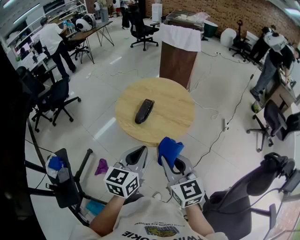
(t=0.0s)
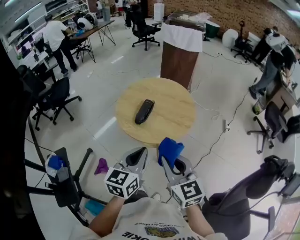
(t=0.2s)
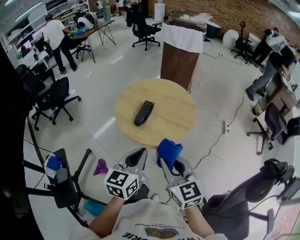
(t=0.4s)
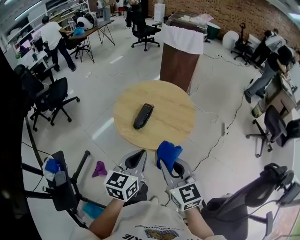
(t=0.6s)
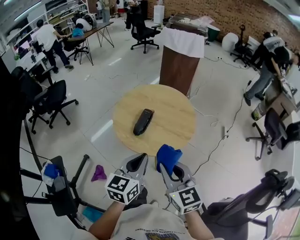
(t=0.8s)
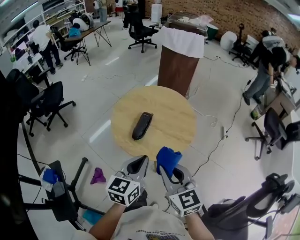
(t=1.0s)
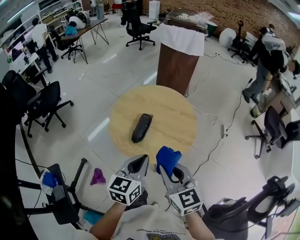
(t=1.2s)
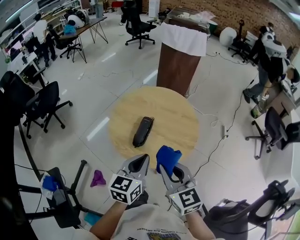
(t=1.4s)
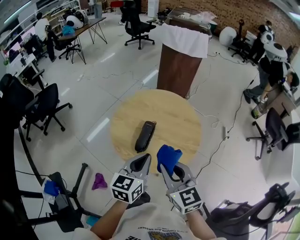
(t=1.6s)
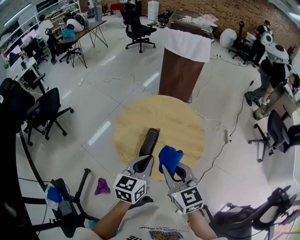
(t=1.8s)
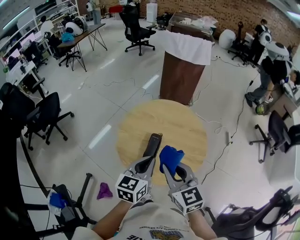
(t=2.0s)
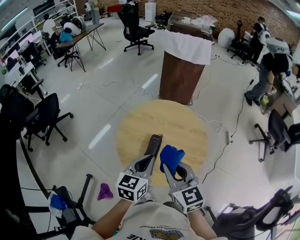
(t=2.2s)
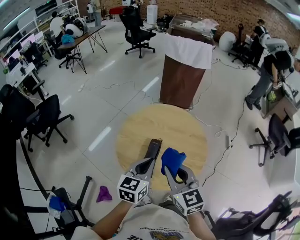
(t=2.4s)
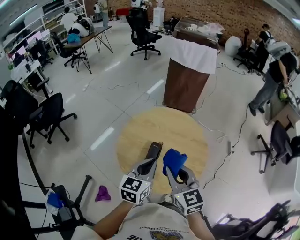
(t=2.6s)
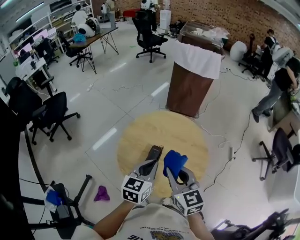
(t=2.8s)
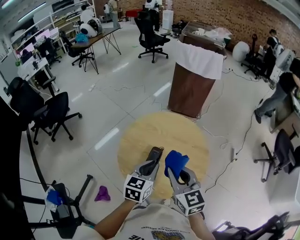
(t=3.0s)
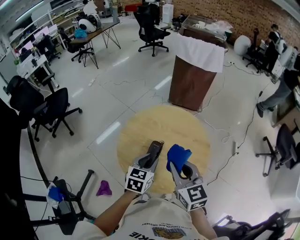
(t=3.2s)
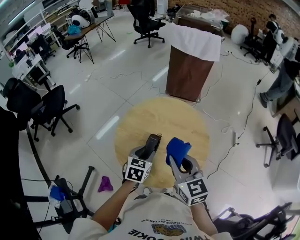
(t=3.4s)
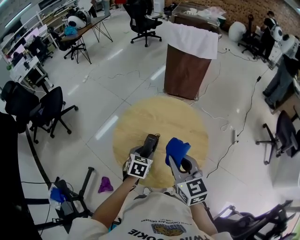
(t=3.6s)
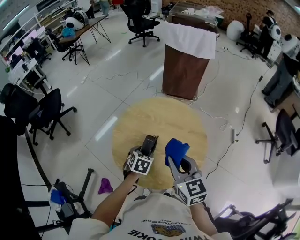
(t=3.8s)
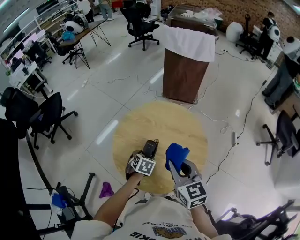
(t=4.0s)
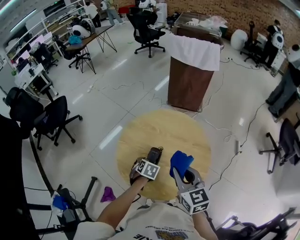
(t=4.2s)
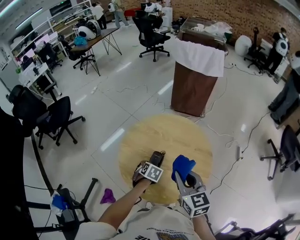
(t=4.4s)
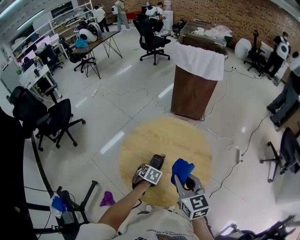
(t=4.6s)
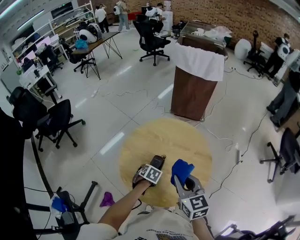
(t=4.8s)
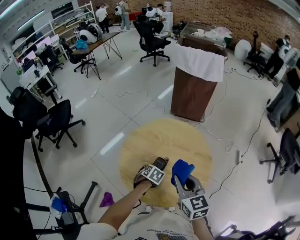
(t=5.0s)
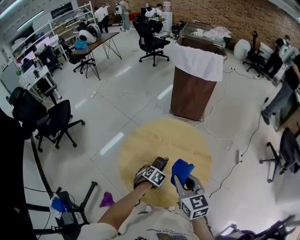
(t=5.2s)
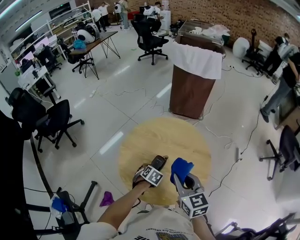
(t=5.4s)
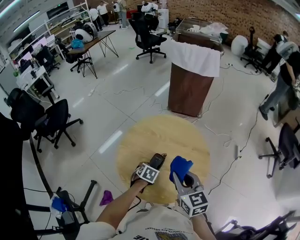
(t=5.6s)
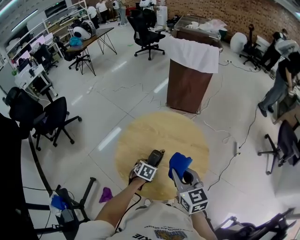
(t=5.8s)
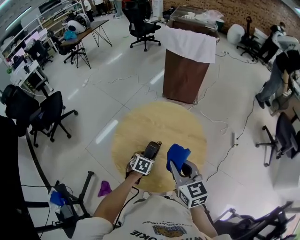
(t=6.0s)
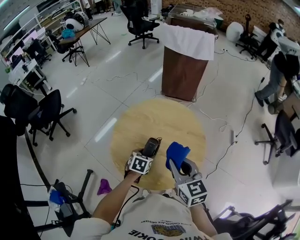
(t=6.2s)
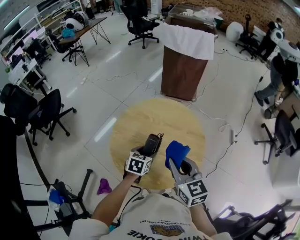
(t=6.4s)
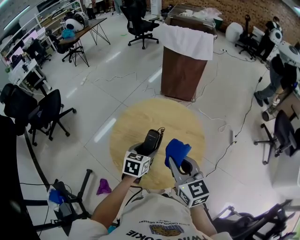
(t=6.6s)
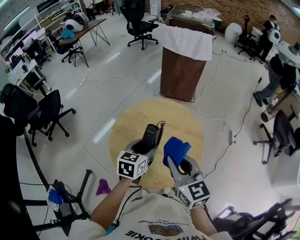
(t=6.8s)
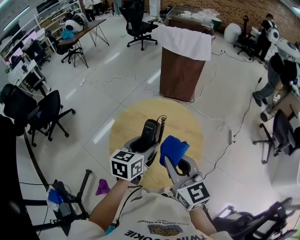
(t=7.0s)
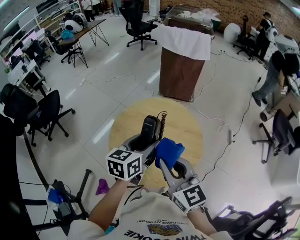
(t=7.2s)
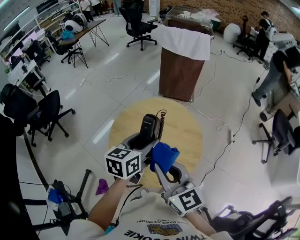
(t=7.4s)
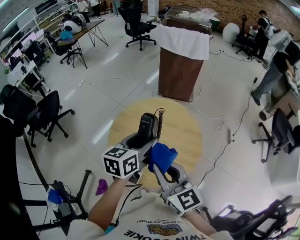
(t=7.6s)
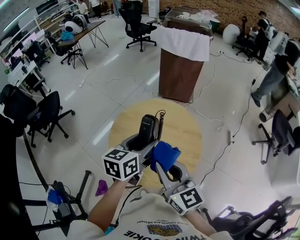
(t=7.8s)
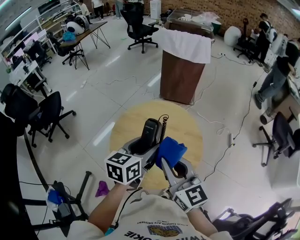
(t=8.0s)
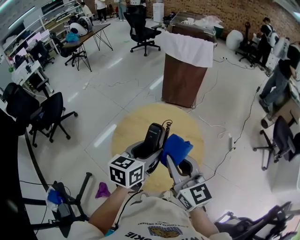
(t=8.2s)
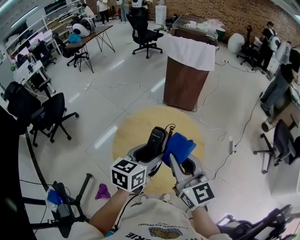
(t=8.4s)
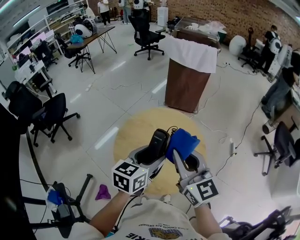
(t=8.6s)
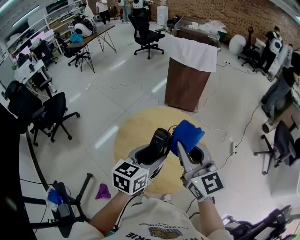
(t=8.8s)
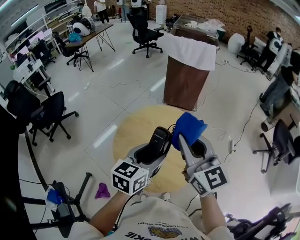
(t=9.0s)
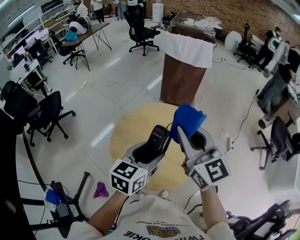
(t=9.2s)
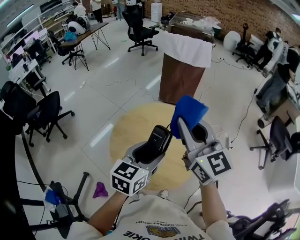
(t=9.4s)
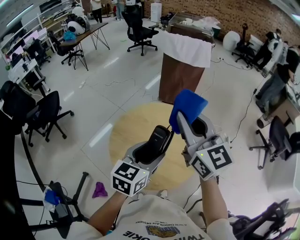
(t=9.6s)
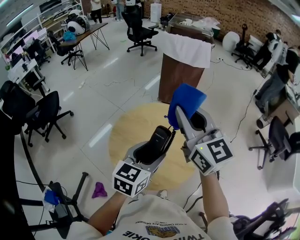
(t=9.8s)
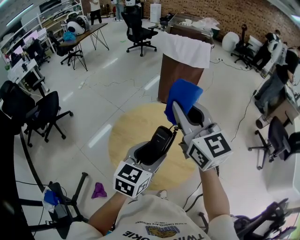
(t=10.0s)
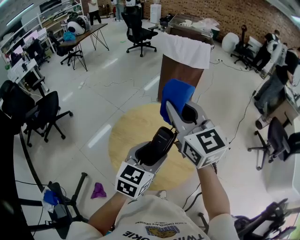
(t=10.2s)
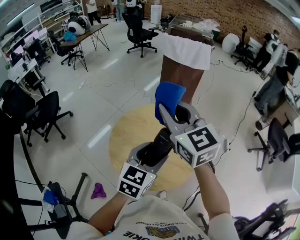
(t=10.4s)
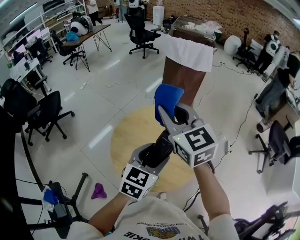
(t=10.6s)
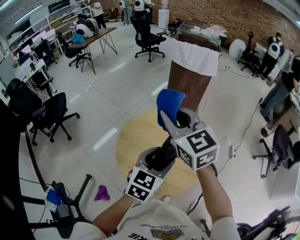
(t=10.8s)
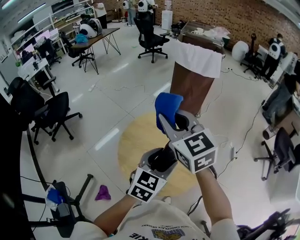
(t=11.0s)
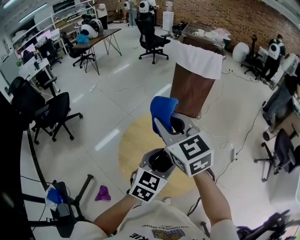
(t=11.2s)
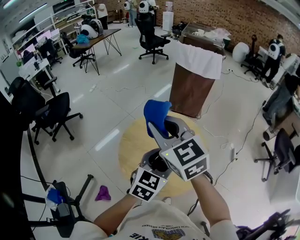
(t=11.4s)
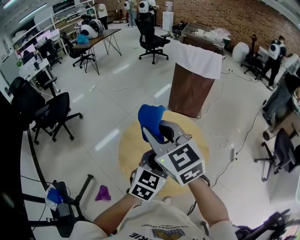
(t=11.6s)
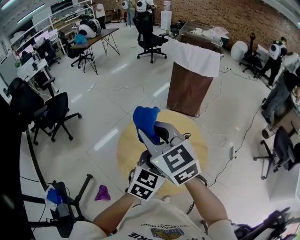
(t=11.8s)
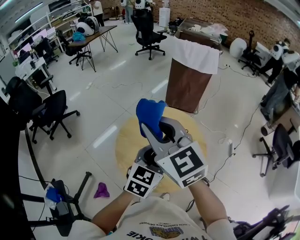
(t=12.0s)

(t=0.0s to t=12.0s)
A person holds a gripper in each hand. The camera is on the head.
t=0.0s - t=1.6s: The two grippers go about 15 cm forward.
t=1.6s - t=3.0s: The two grippers go approximately 10 cm forward.
t=3.0s - t=4.4s: The left gripper moves downward, some 20 cm, tilts its fingers approximately 40 degrees downward, and opens. Meanwhile the right gripper shifts by some 5 cm.
t=4.4s - t=6.0s: The grippers make only small movements.
t=6.0s - t=7.6s: The left gripper heads upward, covering about 25 cm, and angles its fingers upward, by about 40 degrees. Meanwhile the right gripper goes some 10 cm upward and backward.
t=7.6s - t=9.0s: The right gripper travels upward and forward by roughly 15 cm.
t=9.0s - t=10.4s: The right gripper is displaced forward and to the left by approximately 10 cm.
t=10.4s - t=12.0s: The right gripper goes about 10 cm to the left and backward.

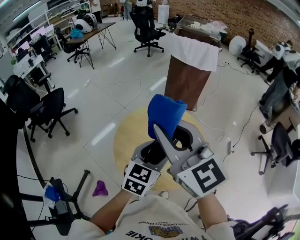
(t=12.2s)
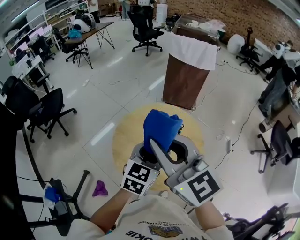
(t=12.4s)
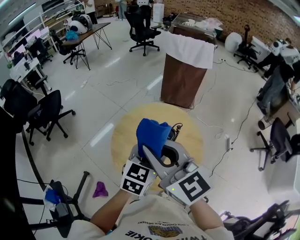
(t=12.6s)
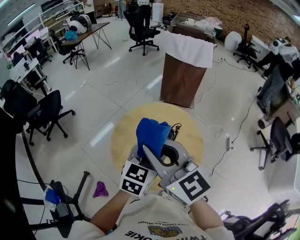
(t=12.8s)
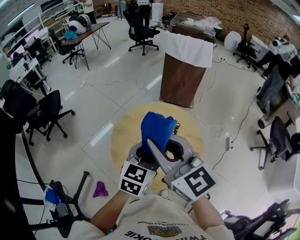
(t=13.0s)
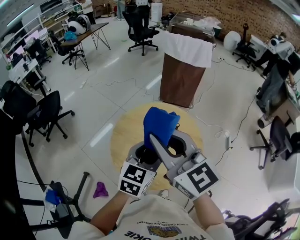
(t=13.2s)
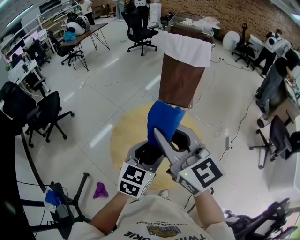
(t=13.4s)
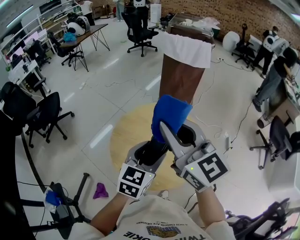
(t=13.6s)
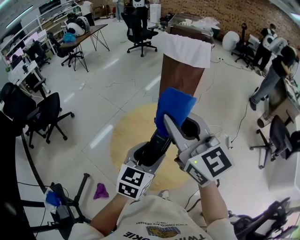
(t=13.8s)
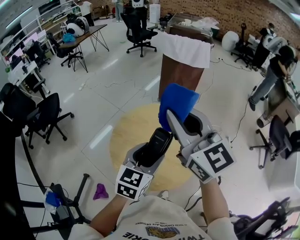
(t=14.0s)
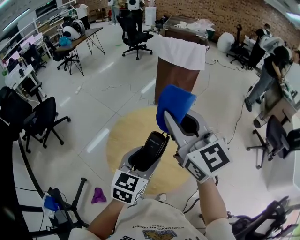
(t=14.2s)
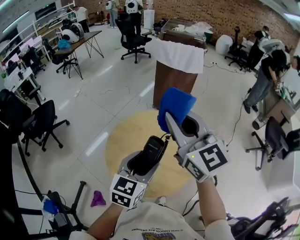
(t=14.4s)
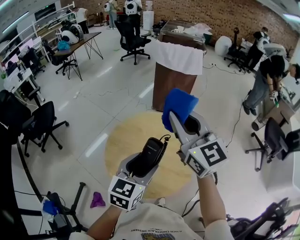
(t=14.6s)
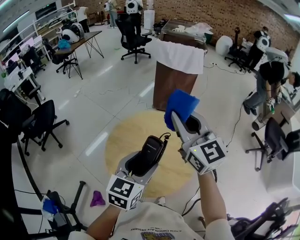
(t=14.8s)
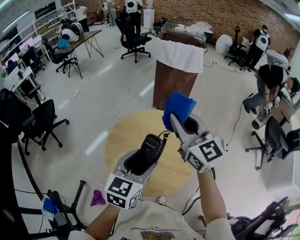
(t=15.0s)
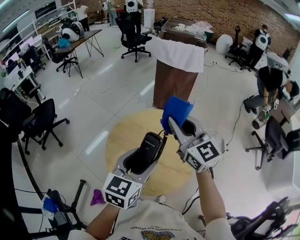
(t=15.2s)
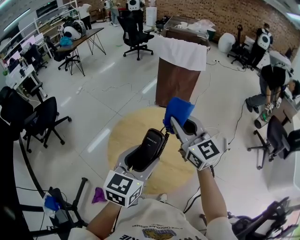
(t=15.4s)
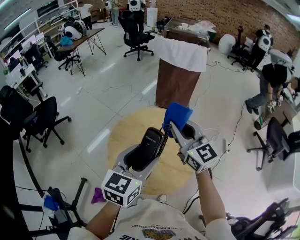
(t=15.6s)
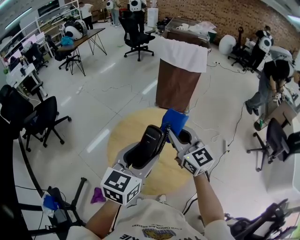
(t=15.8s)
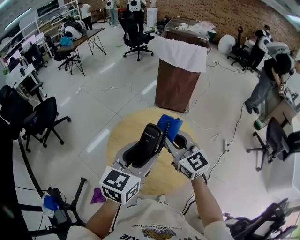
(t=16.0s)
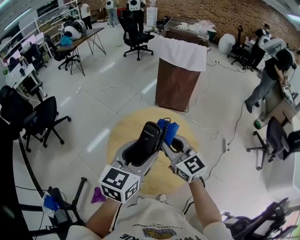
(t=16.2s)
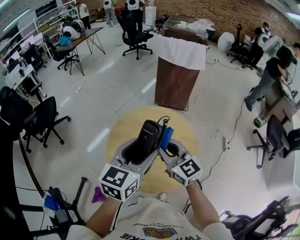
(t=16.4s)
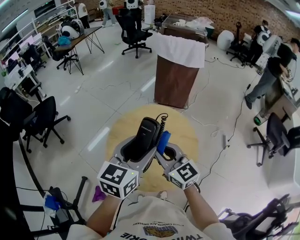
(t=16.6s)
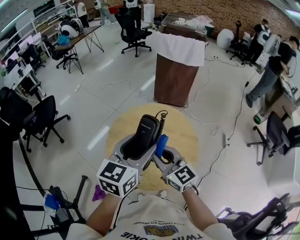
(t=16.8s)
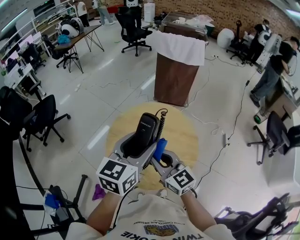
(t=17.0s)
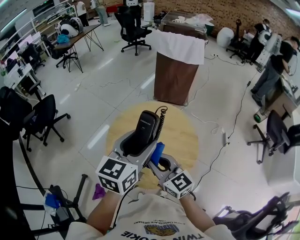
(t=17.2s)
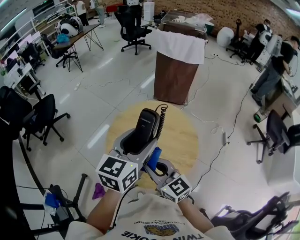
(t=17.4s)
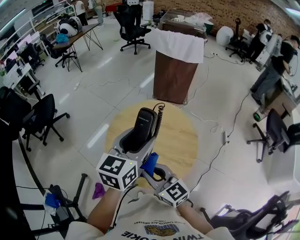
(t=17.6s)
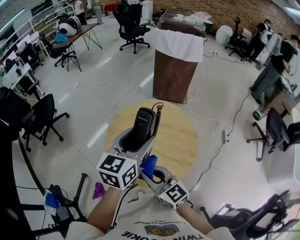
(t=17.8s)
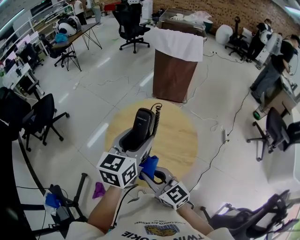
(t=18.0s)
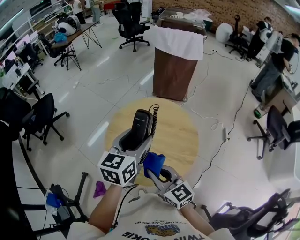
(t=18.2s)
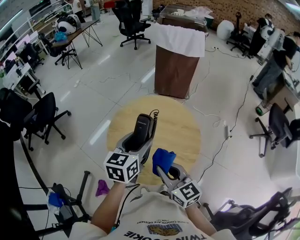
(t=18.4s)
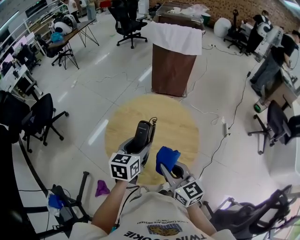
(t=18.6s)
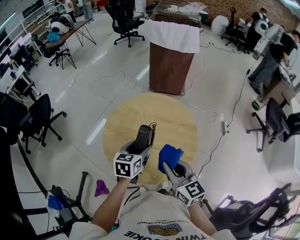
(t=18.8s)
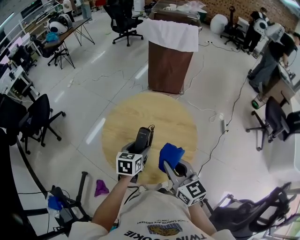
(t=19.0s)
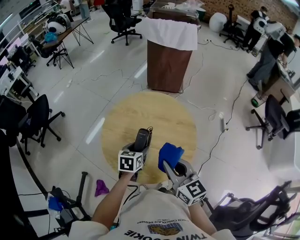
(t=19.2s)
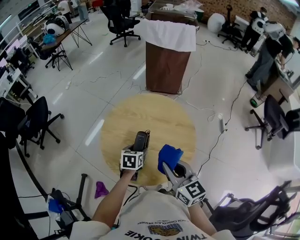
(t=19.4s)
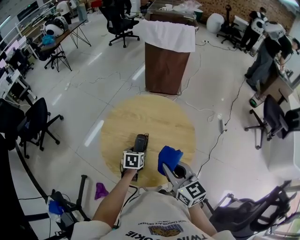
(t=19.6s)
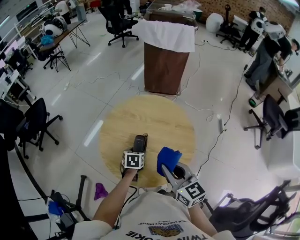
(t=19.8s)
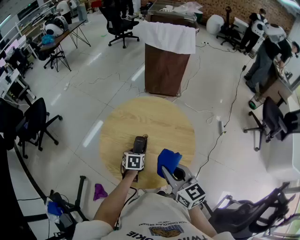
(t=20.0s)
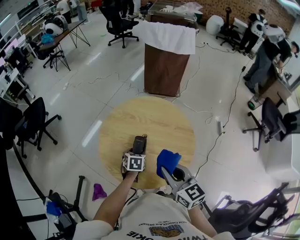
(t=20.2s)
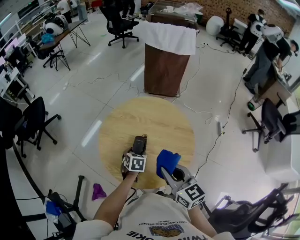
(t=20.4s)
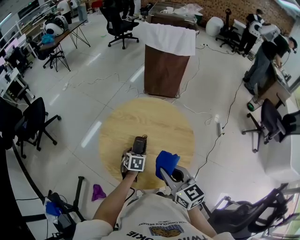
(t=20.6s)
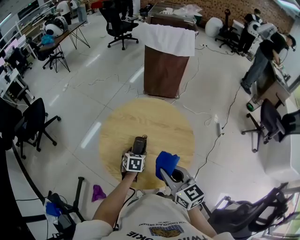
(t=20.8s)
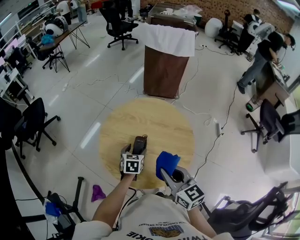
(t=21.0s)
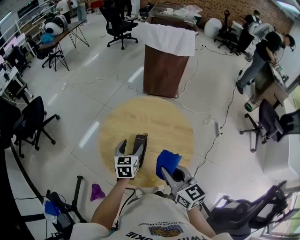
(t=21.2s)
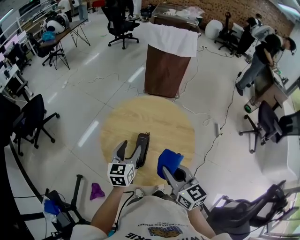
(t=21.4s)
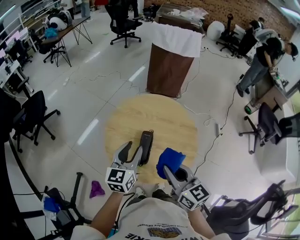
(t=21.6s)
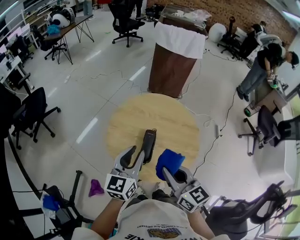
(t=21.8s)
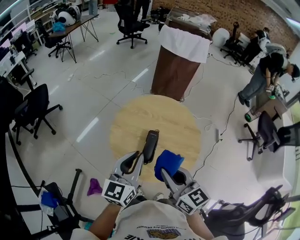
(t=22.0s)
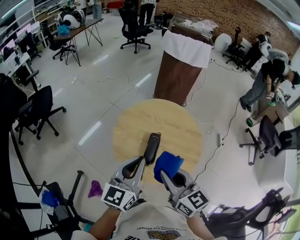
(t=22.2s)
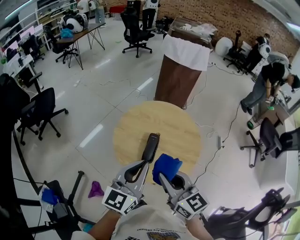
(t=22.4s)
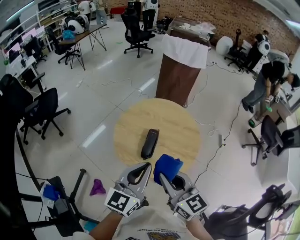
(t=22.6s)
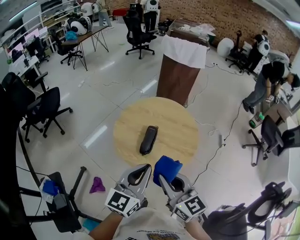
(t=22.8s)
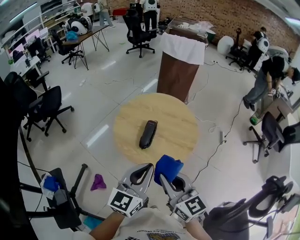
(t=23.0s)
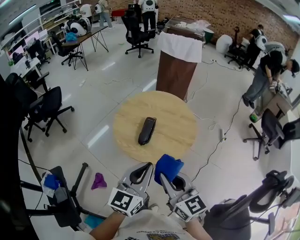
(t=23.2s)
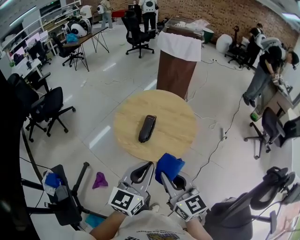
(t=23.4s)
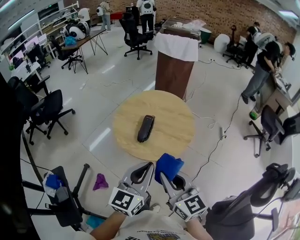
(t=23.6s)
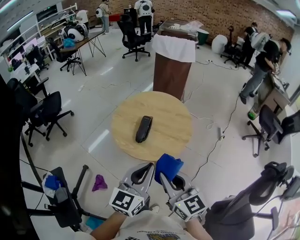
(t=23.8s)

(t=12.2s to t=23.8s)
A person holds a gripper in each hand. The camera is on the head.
t=13.6s - t=15.0s: The right gripper moves forward and to the right, approximately 10 cm.
t=15.0s - t=16.6s: The right gripper travels downward, backward and to the left by roughly 15 cm.
t=16.6s - t=18.0s: The right gripper heads backward and downward, covering approximately 10 cm.
t=18.0s - t=19.4s: The left gripper heads downward, covering roughly 30 cm, and tips its fingers downward by approximately 40 degrees. The right gripper moves to the right, about 10 cm.
t=19.4s - t=21.0s: The grippers make only small movements.
t=21.0s - t=22.4s: The left gripper shifts about 35 cm upward and backward, points its fingers roughly 40 degrees further upward, and closes, while the right gripper moves to the left, upward and backward, about 15 cm.
t=22.4s - t=23.8s: The grippers both shift backward and to the right by about 15 cm.
